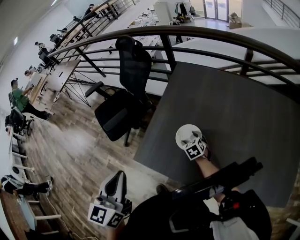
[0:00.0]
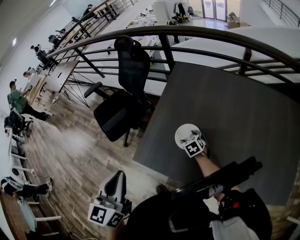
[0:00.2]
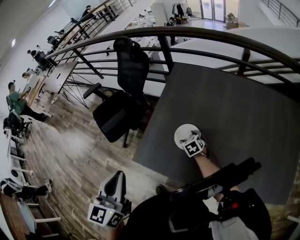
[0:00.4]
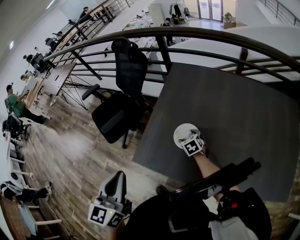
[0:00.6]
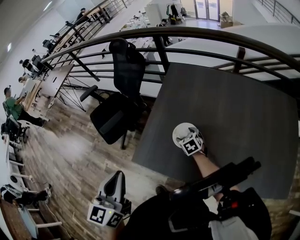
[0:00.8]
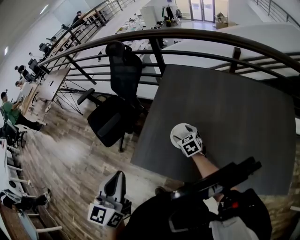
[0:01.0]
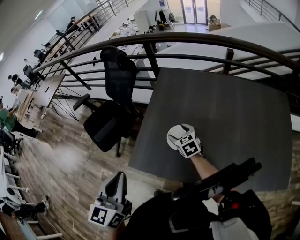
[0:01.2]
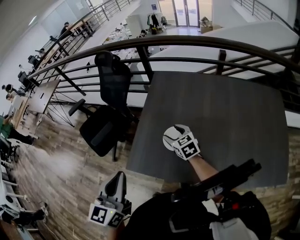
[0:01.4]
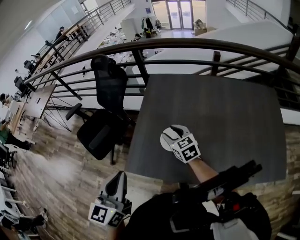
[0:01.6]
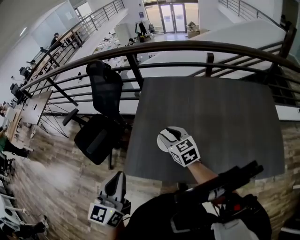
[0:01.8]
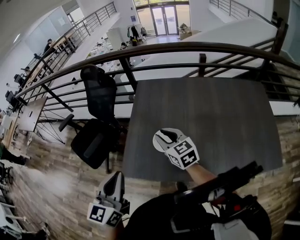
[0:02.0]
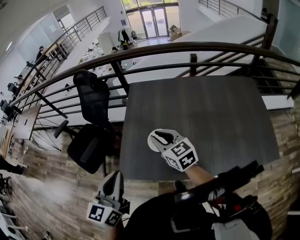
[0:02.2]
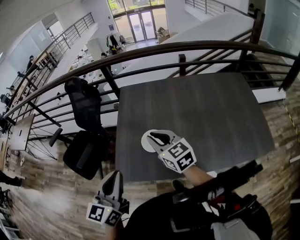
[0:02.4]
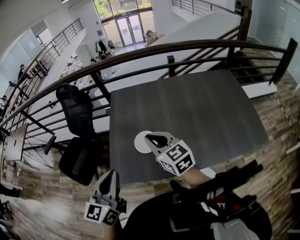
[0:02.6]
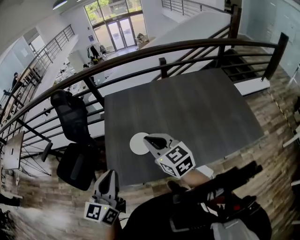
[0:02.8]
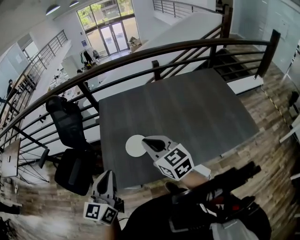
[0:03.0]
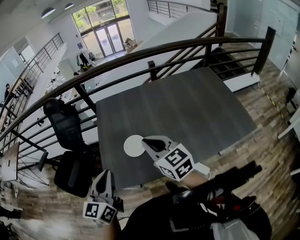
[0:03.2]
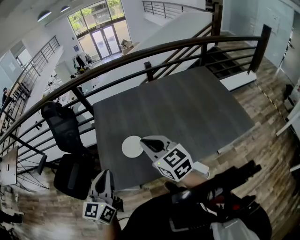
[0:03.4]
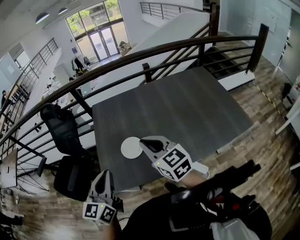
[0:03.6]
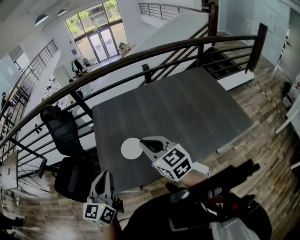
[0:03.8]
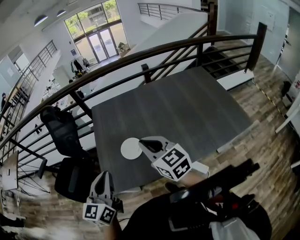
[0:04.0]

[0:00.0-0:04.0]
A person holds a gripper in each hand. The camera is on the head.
0:00.0 to 0:01.4: The right gripper is displaced upward by some 15 cm, and swivels some 20 degrees.
0:01.4 to 0:02.6: The left gripper changes its angle by about 20 degrees. The right gripper heads upward and backward, covering some 20 cm, swivels some 20 degrees, and closes up.
0:02.6 to 0:04.0: The right gripper shifts by roughly 5 cm.

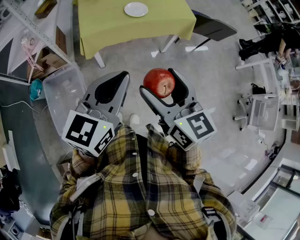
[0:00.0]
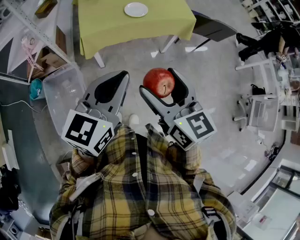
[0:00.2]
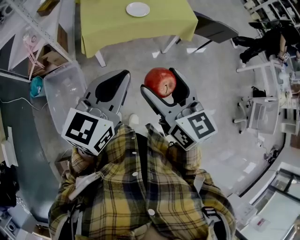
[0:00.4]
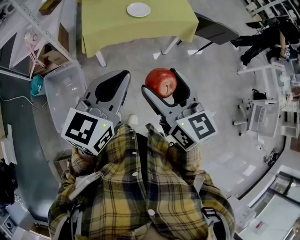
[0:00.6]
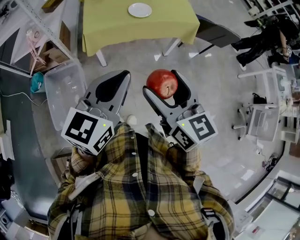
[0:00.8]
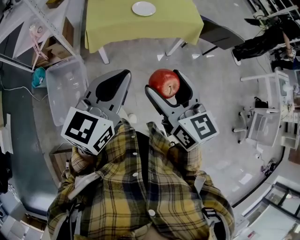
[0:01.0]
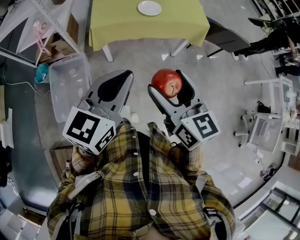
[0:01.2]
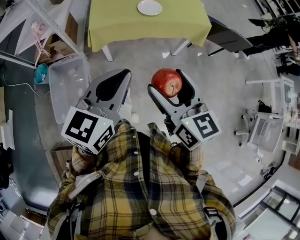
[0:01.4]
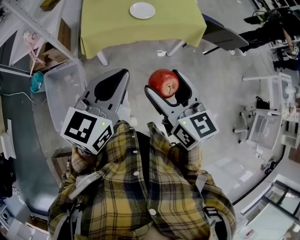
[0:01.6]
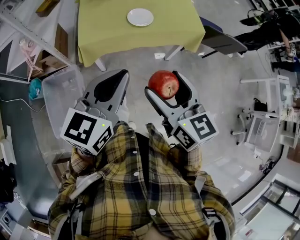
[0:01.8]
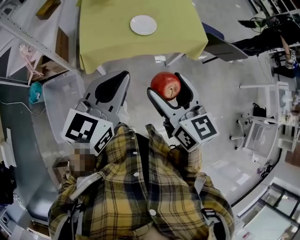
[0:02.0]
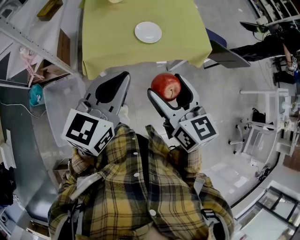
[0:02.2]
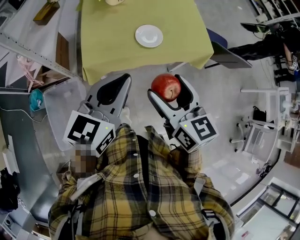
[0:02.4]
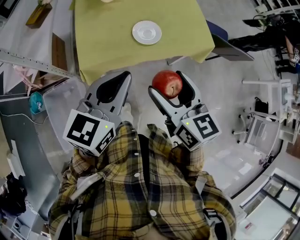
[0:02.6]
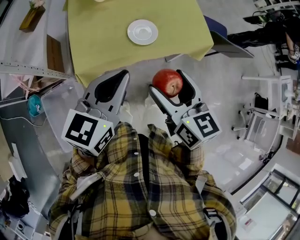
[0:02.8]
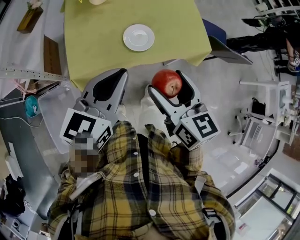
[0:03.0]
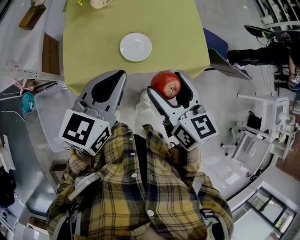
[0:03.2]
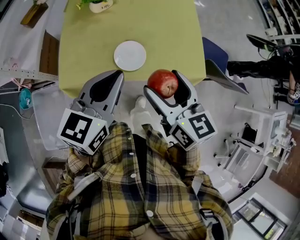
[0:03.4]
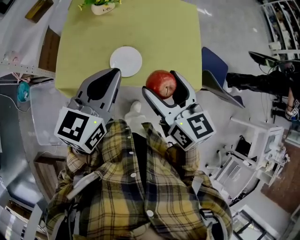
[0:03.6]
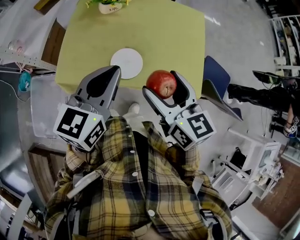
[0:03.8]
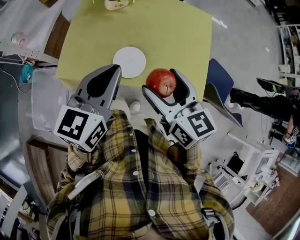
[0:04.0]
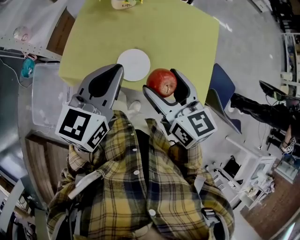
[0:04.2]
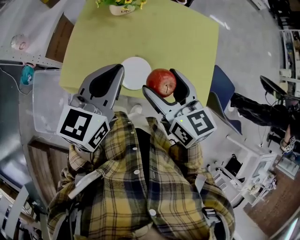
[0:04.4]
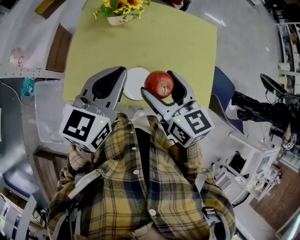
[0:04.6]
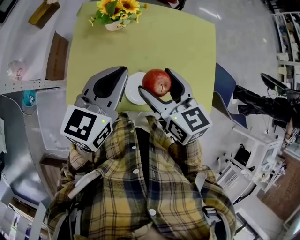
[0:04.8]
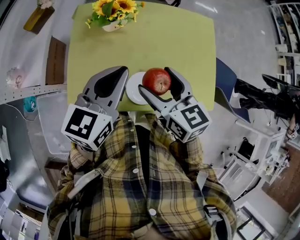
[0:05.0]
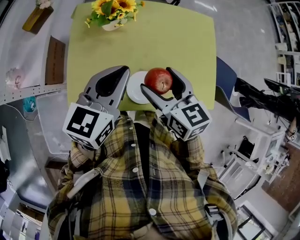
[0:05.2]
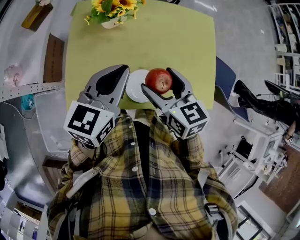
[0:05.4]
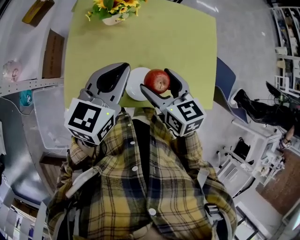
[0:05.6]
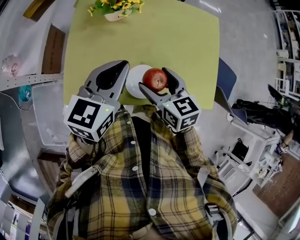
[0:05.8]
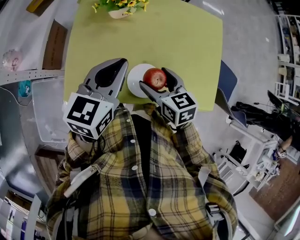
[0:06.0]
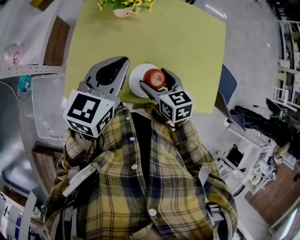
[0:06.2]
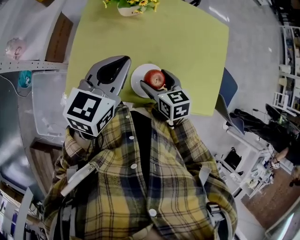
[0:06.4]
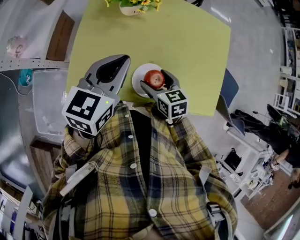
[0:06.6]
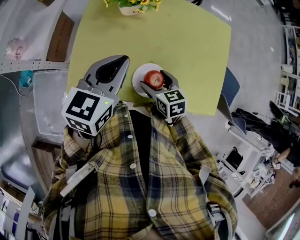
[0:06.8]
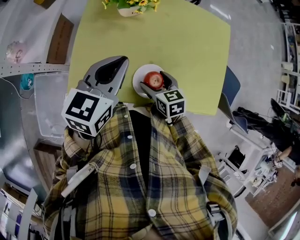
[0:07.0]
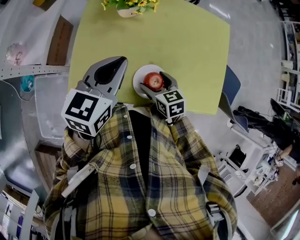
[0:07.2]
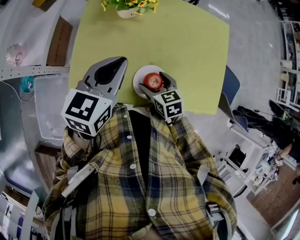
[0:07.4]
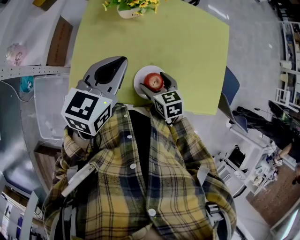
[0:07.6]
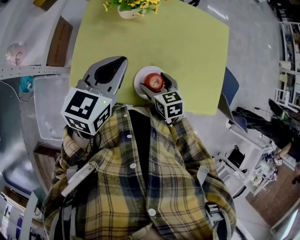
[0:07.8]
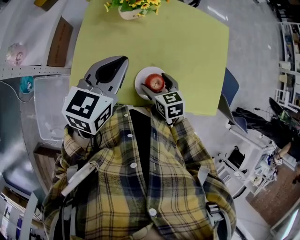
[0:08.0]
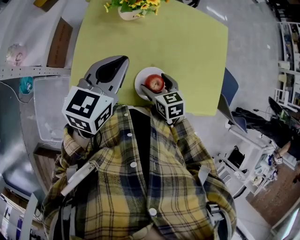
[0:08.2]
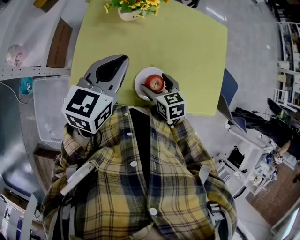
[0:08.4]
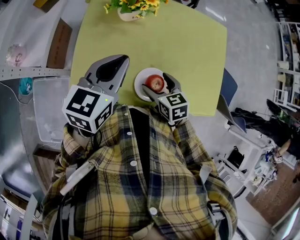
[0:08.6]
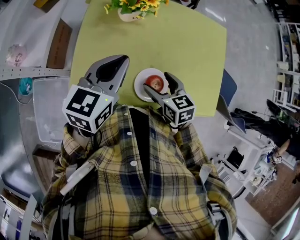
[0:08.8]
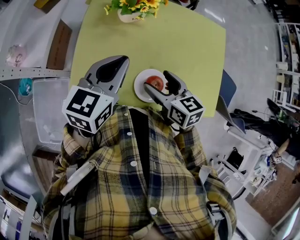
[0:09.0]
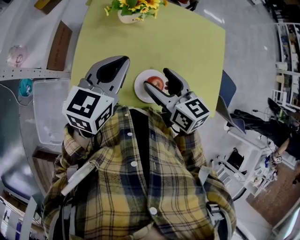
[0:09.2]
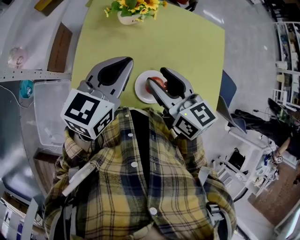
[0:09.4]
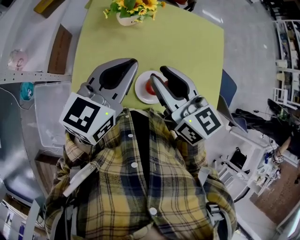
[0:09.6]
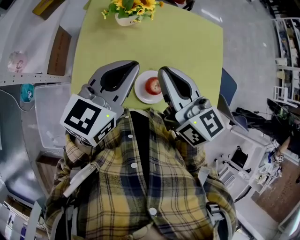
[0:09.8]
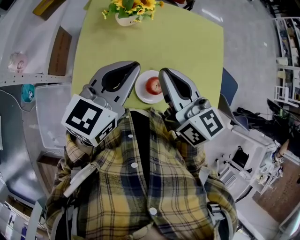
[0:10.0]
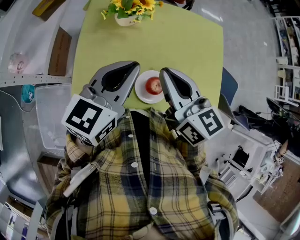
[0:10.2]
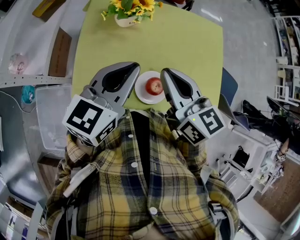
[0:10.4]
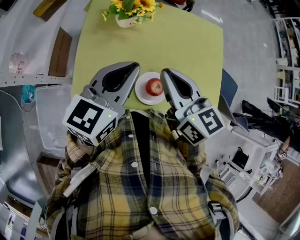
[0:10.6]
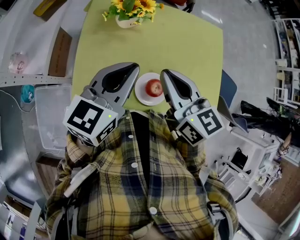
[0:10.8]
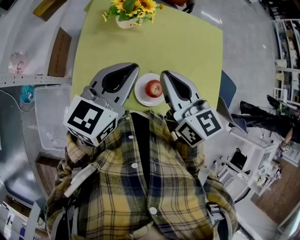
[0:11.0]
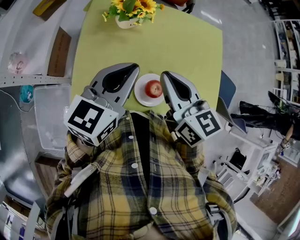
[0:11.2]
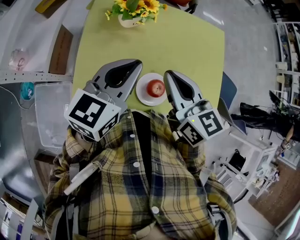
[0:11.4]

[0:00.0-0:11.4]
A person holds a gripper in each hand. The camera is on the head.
0:00.0 to 0:01.4: The right gripper changes place by about 5 cm.
0:01.4 to 0:02.8: The grippers both shift forward by roughly 30 cm.
0:02.8 to 0:04.2: The right gripper shifts by approximately 25 cm, and turns by some 30 degrees; the left gripper moves about 20 cm, and rotates roughly 30 degrees.
0:04.2 to 0:05.6: The left gripper is displaced forward by some 10 cm. The right gripper shifts approximately 15 cm forward, downward and to the left.
0:05.6 to 0:07.2: The left gripper ends up about 5 cm from where it was. Meanwhile the right gripper heads downward, covering approximately 15 cm.
0:07.2 to 0:08.6: The grippers make only small movements.
0:08.6 to 0:10.0: The left gripper changes place by some 5 cm. The right gripper travels upward by some 25 cm, tips its fingers upward by some 30 degrees, and closes.
0:10.0 to 0:11.4: The grippers stay close to where they were, moving slightly.

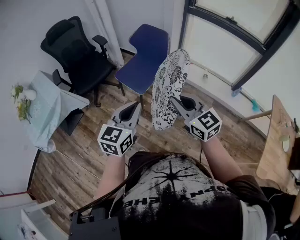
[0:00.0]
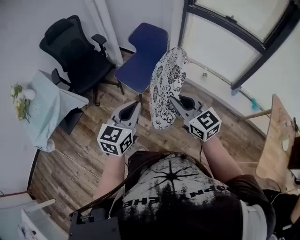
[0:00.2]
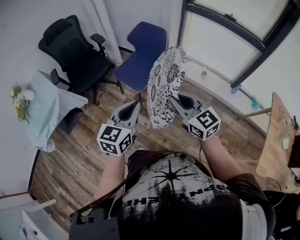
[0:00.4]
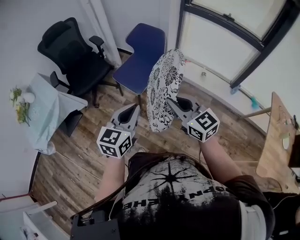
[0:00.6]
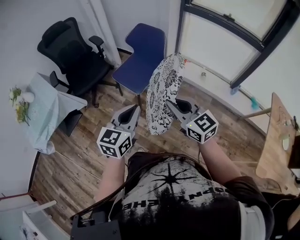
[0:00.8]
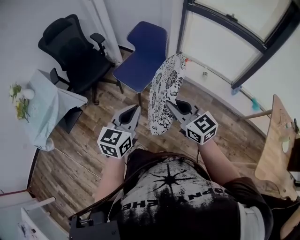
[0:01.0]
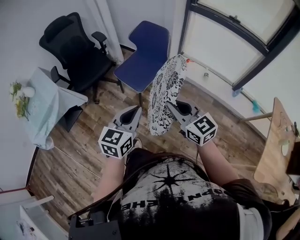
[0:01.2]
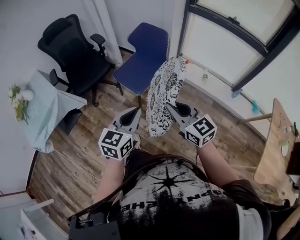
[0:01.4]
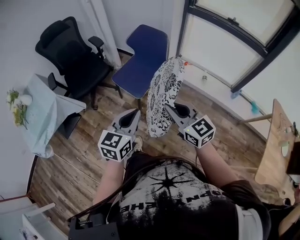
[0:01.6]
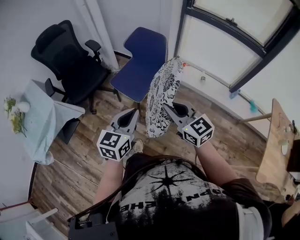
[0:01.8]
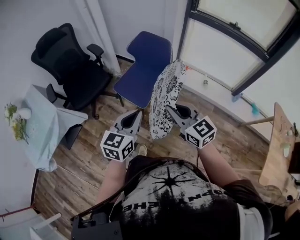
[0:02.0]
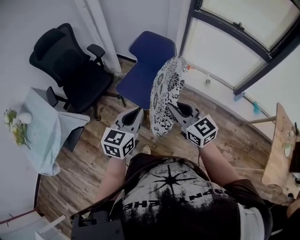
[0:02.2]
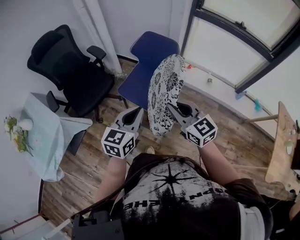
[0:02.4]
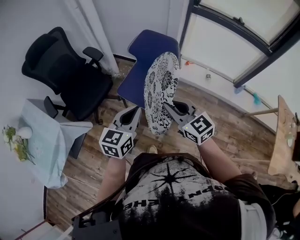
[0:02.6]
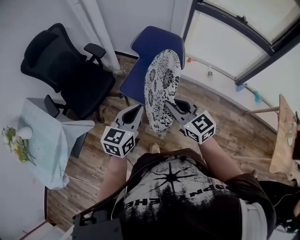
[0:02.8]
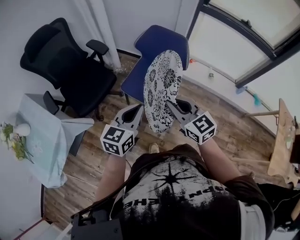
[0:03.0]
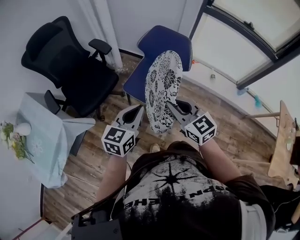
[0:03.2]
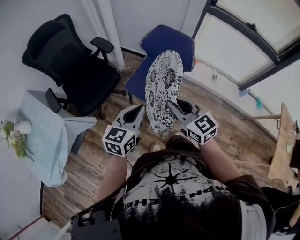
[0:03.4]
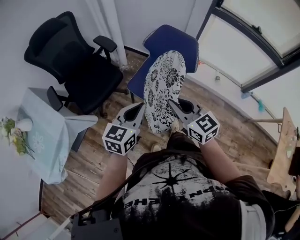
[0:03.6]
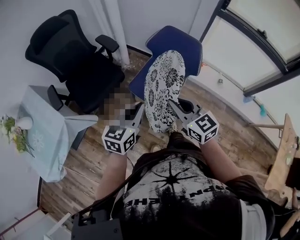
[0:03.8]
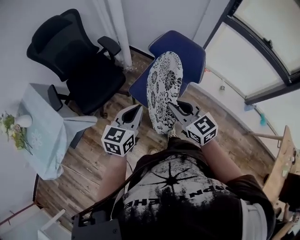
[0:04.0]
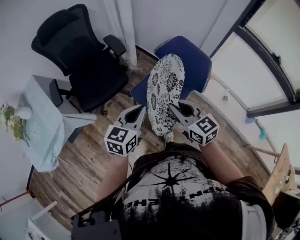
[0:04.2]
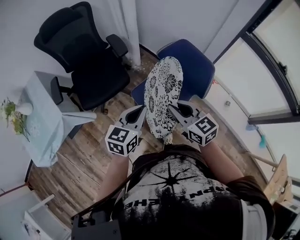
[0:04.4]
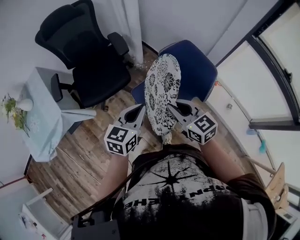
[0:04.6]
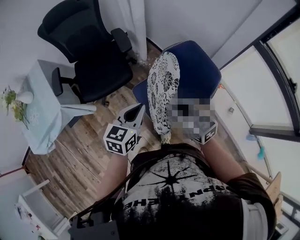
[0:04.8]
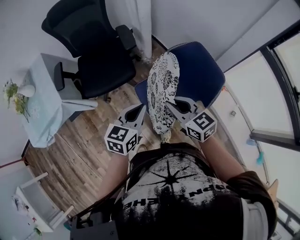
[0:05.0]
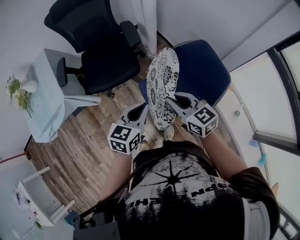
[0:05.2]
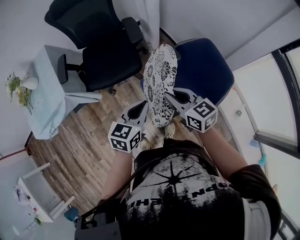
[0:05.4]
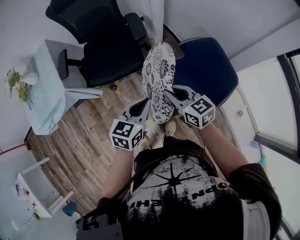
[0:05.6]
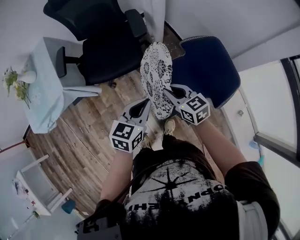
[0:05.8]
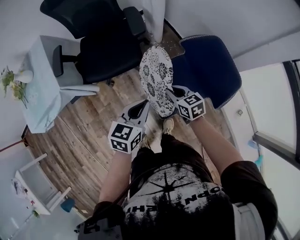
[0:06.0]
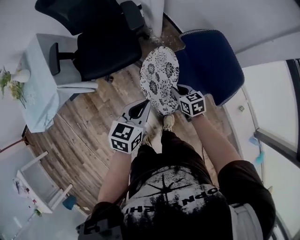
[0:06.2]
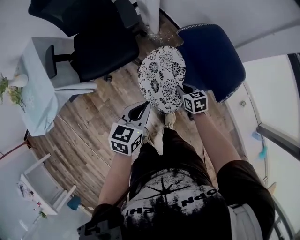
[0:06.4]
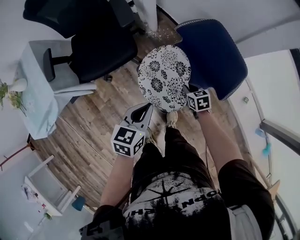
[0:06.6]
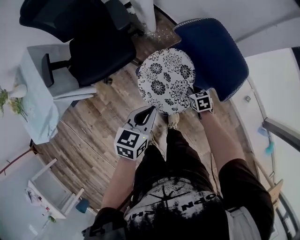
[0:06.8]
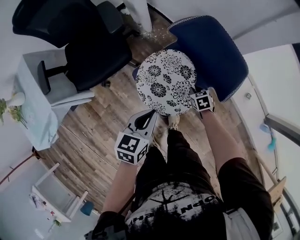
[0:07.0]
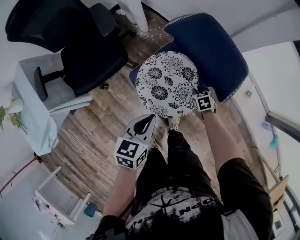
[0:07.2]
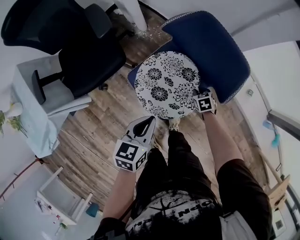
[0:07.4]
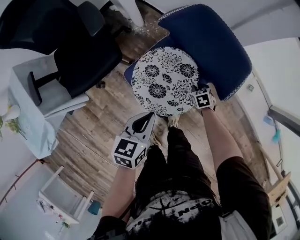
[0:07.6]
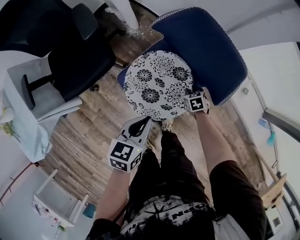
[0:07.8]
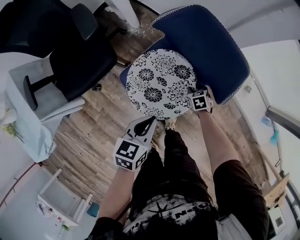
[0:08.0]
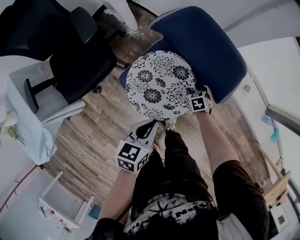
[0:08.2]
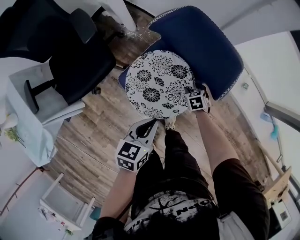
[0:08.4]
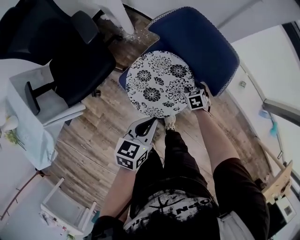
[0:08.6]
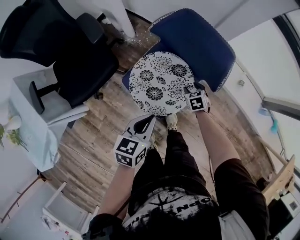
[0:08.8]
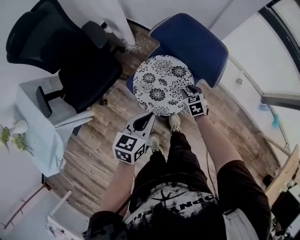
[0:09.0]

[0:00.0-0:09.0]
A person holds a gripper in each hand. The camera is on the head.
0:00.0 to 0:01.6: The left gripper ends up approximately 5 cm from where it was.
0:01.6 to 0:03.0: Both grippers move forward and to the left, approximately 25 cm.
0:03.0 to 0:04.4: Both grippers move forward, roughly 15 cm. The right gripper turns by some 20 degrees.
0:04.4 to 0:06.0: The left gripper heads downward, covering about 10 cm, while the right gripper travels downward and forward by some 25 cm, and rotates approximately 20 degrees.
0:06.0 to 0:07.6: The right gripper heads downward and to the right, covering approximately 35 cm, and points its fingers about 30 degrees further downward; the left gripper travels downward and to the right by roughly 15 cm.
0:07.6 to 0:09.0: The right gripper heads upward, covering some 15 cm, and opens; the left gripper goes roughly 5 cm upward.
